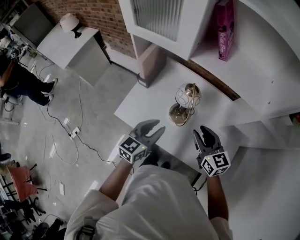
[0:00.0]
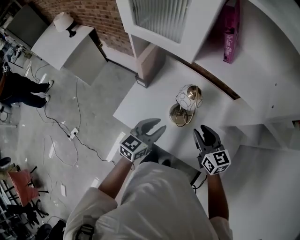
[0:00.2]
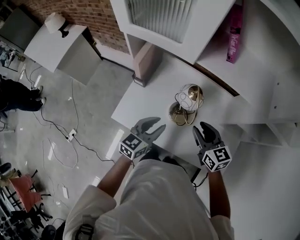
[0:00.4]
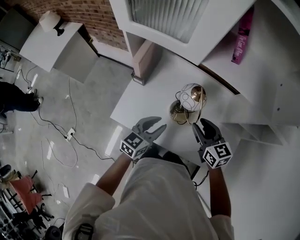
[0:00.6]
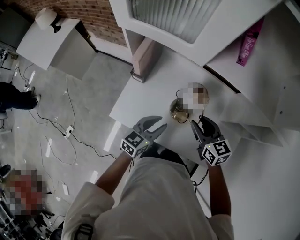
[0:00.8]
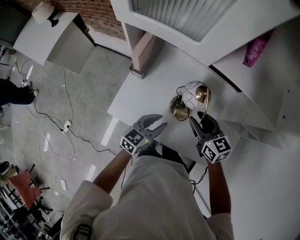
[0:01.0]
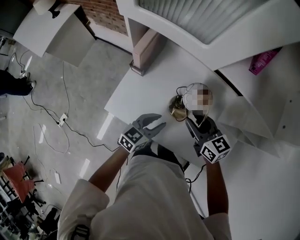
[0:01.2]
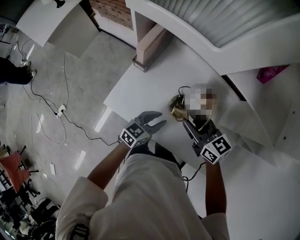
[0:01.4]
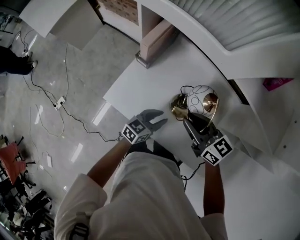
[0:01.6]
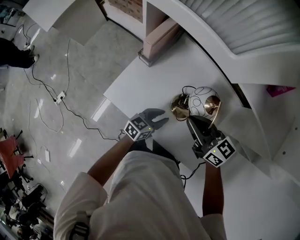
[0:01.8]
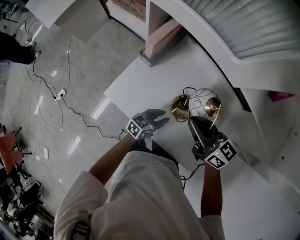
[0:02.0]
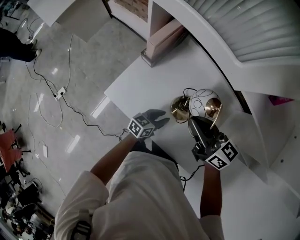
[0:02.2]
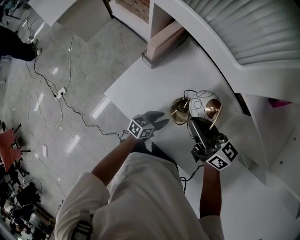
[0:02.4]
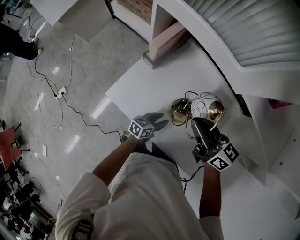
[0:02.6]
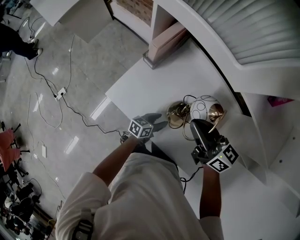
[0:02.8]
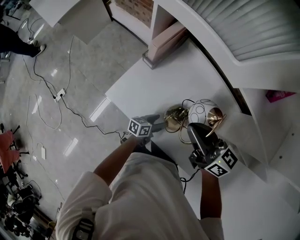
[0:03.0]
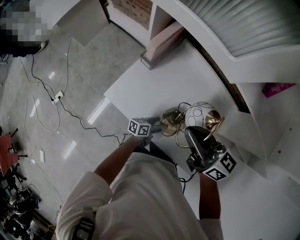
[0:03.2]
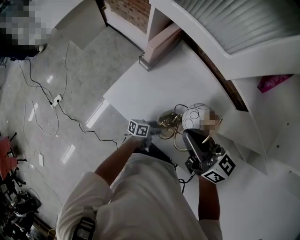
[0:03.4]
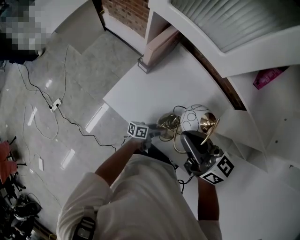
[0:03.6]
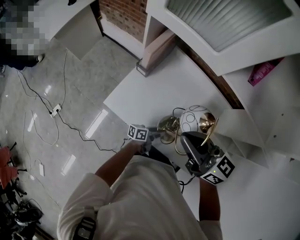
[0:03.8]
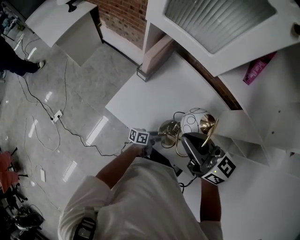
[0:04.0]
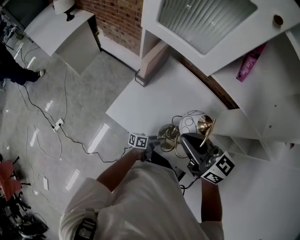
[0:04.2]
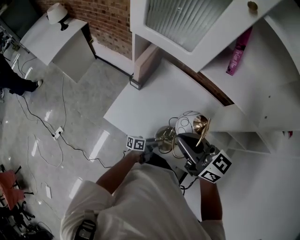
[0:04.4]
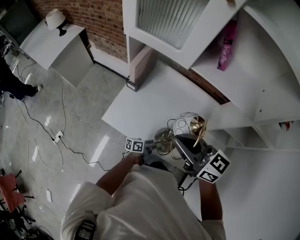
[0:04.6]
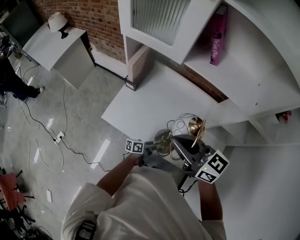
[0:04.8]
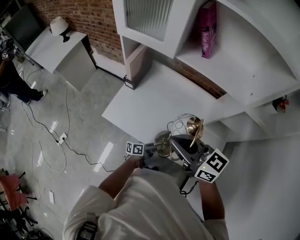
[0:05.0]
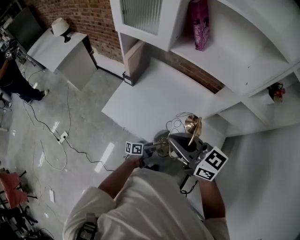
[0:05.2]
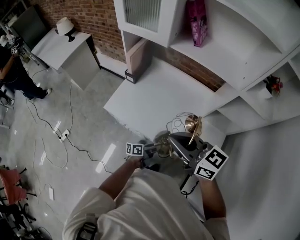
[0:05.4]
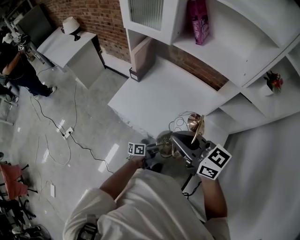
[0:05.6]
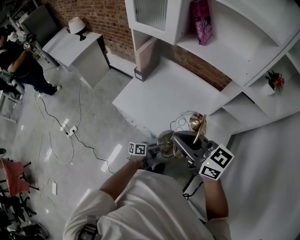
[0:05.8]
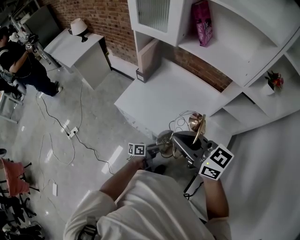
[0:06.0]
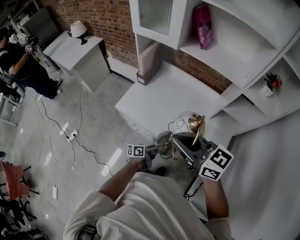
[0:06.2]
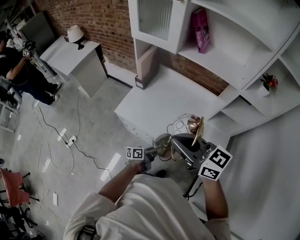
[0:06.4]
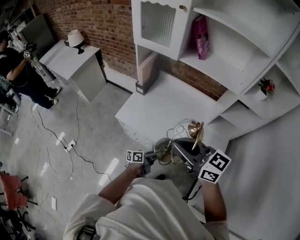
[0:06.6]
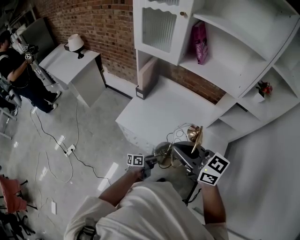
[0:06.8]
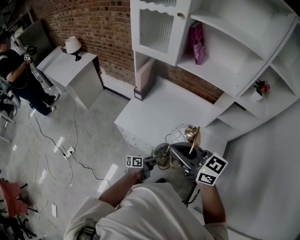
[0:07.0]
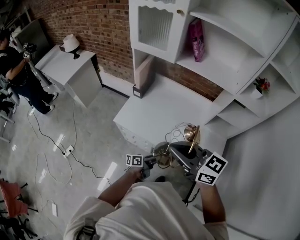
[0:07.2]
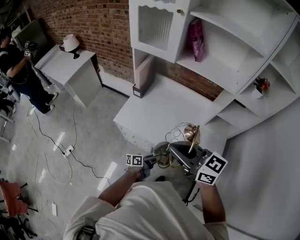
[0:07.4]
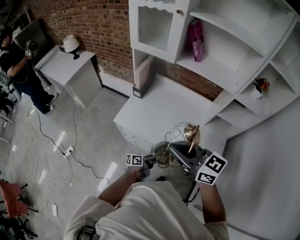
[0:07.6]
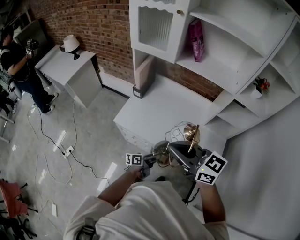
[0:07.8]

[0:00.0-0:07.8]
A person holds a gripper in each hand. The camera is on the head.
0:00.0 to 0:01.6: The left gripper shifts roughly 20 cm downward, and swivels about 20 degrees; the right gripper goes some 15 cm to the left, forward and downward, and turns by about 30 degrees.
0:01.6 to 0:03.2: The right gripper goes some 10 cm upward, and closes up; the left gripper moves downward, roughly 10 cm, rotates roughly 40 degrees, and opens its fingers.
0:03.2 to 0:04.6: Both grippers travel together backward and upward, some 10 cm. The left gripper closes up.
0:04.6 to 0:06.2: Both grippers move backward, approximately 20 cm.
0:06.2 to 0:07.8: The right gripper ends up roughly 5 cm from where it was.

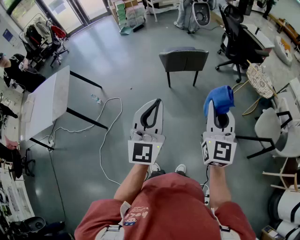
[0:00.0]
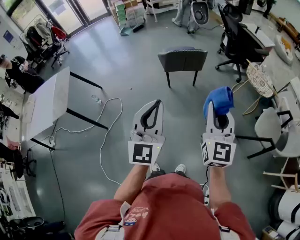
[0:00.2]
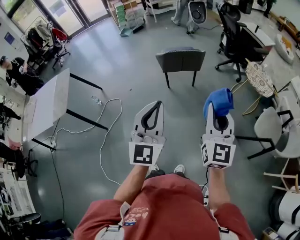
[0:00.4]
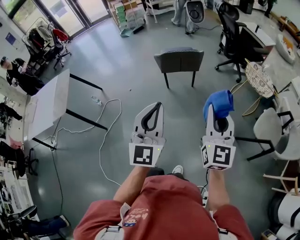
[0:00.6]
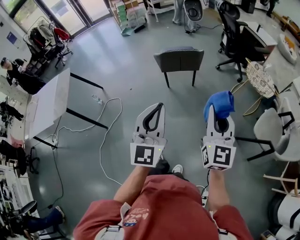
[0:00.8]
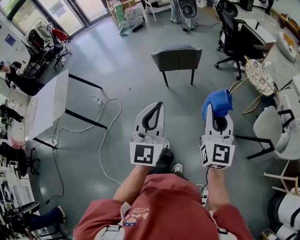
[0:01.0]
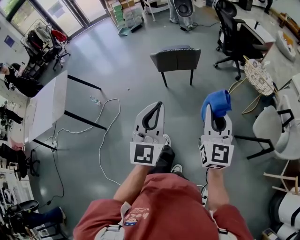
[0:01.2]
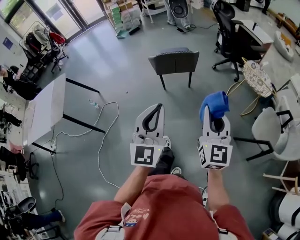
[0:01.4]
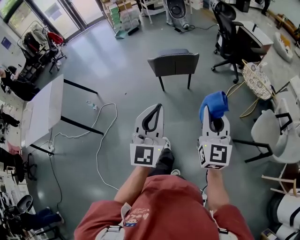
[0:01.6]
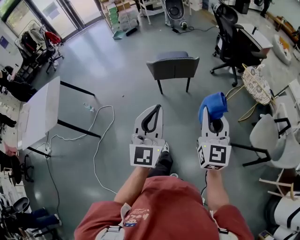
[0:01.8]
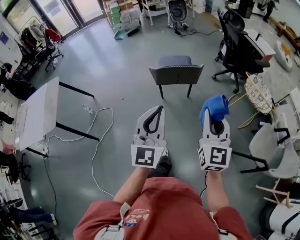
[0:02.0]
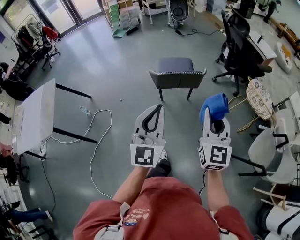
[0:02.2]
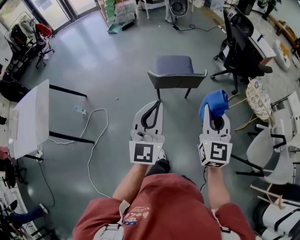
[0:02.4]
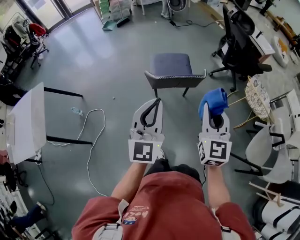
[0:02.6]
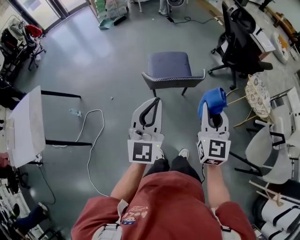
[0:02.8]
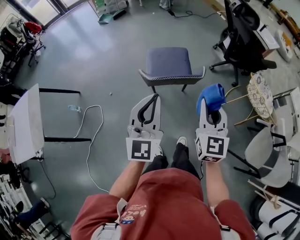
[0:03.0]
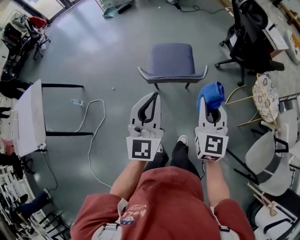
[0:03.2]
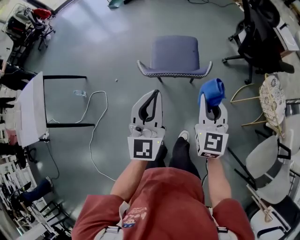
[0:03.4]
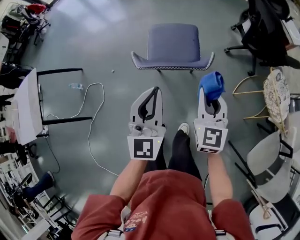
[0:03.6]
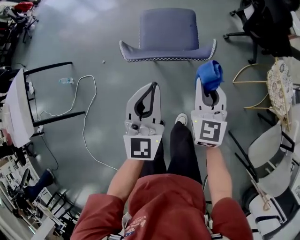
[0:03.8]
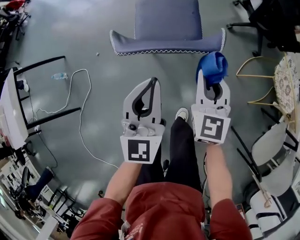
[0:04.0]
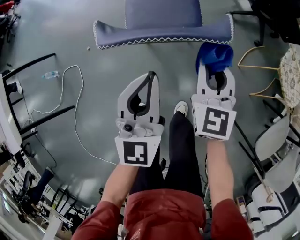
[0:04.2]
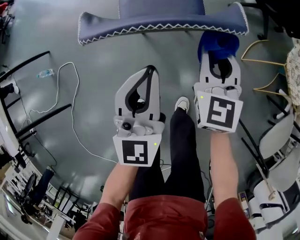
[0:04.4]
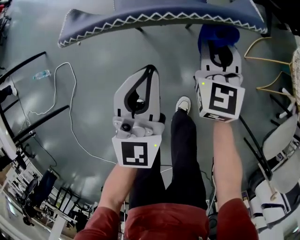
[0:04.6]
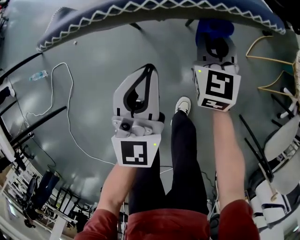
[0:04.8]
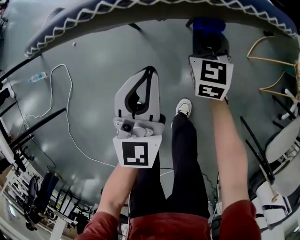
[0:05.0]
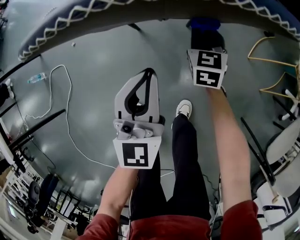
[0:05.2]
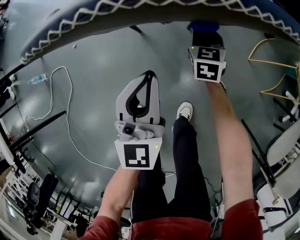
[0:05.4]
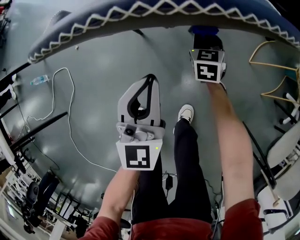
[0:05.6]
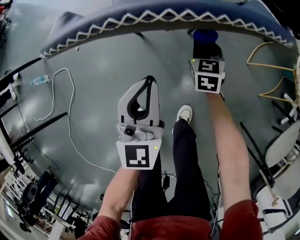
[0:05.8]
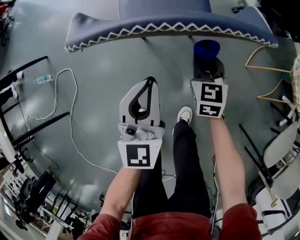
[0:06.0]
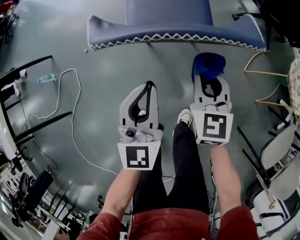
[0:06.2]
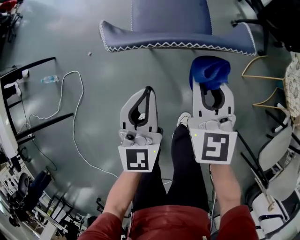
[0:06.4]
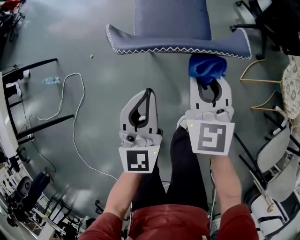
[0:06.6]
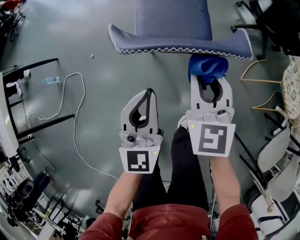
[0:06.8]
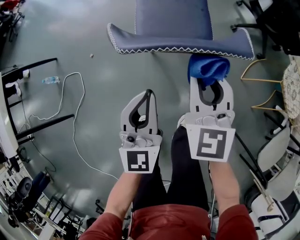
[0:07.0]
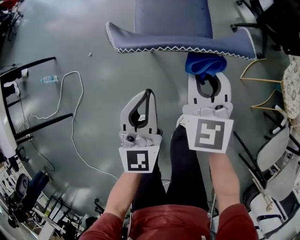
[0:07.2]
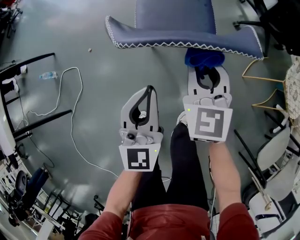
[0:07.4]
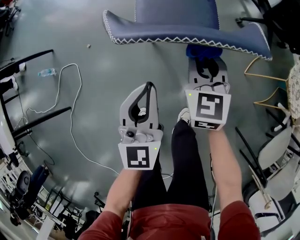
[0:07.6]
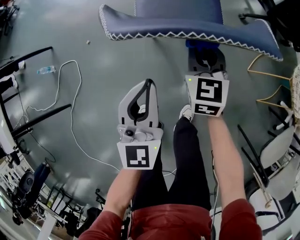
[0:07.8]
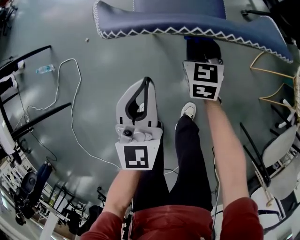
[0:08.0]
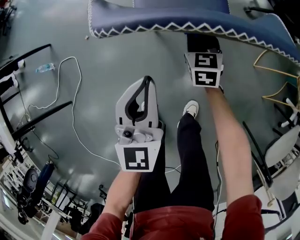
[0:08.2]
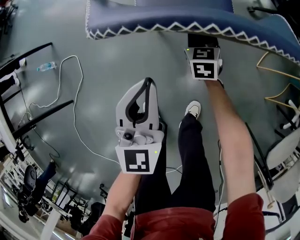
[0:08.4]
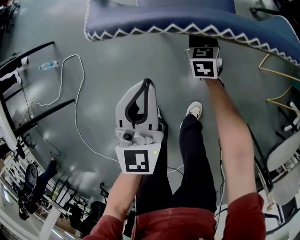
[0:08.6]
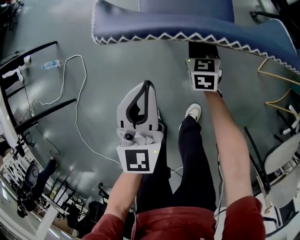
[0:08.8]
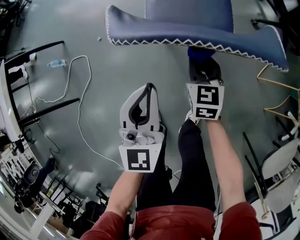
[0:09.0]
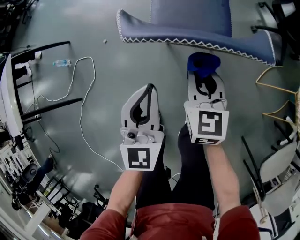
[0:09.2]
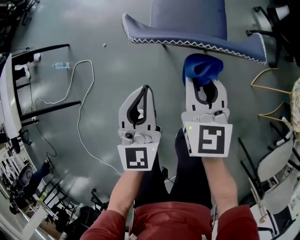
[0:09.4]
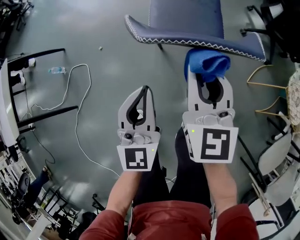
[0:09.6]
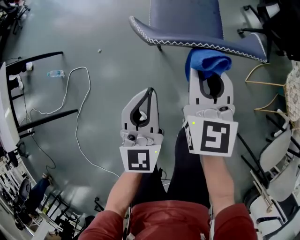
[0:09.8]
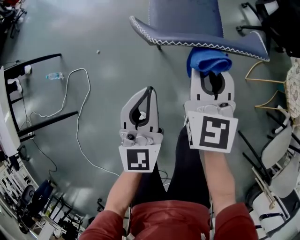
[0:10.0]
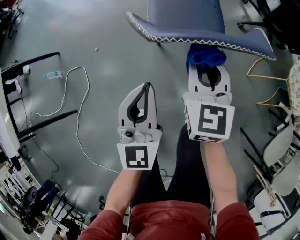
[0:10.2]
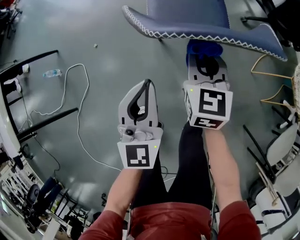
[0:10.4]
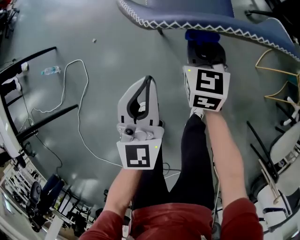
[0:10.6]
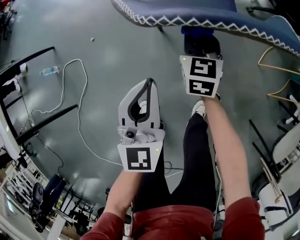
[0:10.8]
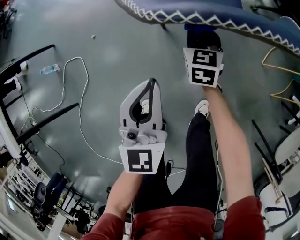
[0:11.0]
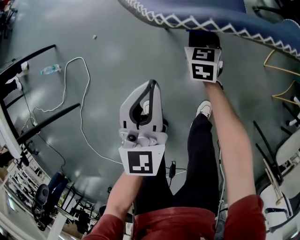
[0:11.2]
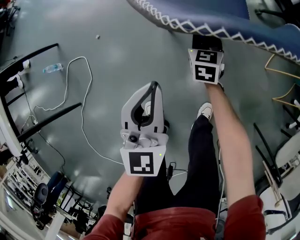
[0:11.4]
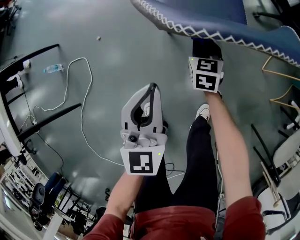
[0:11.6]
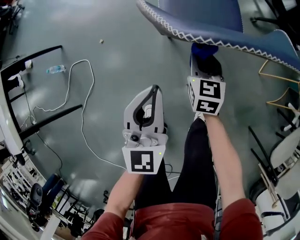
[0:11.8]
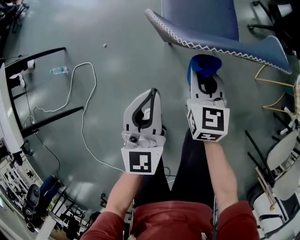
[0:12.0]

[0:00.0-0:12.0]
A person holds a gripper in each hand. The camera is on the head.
0:00.0 to 0:01.6: The two grippers go roughly 10 cm to the right and forward.
0:01.6 to 0:03.0: The two grippers go about 35 cm forward.
0:03.0 to 0:04.4: The left gripper moves downward, about 30 cm, while the right gripper heads downward and forward, covering about 35 cm.
0:04.4 to 0:06.0: The left gripper is displaced downward by roughly 10 cm. The right gripper travels downward by approximately 15 cm.
0:06.0 to 0:07.6: The right gripper shifts roughly 15 cm upward and to the left. The left gripper travels to the left by some 5 cm.
0:07.6 to 0:09.0: The right gripper moves downward, approximately 10 cm.
0:09.0 to 0:10.4: The right gripper moves upward, approximately 10 cm.
0:10.4 to 0:12.0: The grippers both shift to the left by roughly 5 cm. The left gripper goes downward and returns, roughly 5 cm each way. Meanwhile the right gripper goes downward and returns, roughly 20 cm each way.

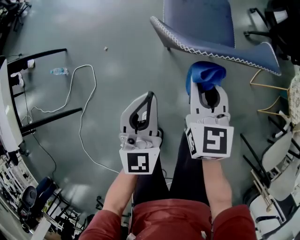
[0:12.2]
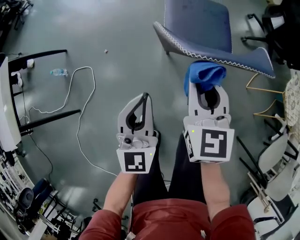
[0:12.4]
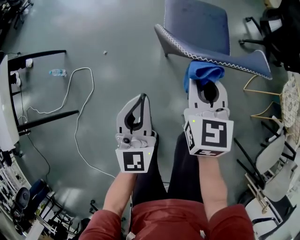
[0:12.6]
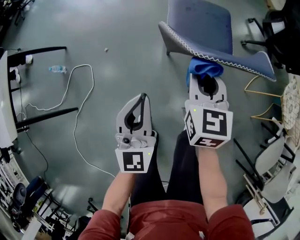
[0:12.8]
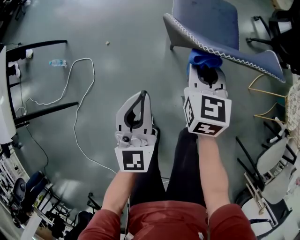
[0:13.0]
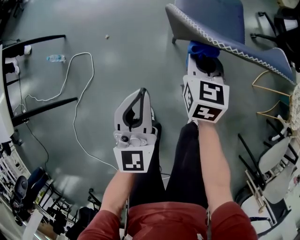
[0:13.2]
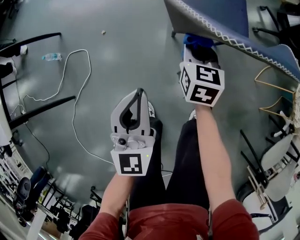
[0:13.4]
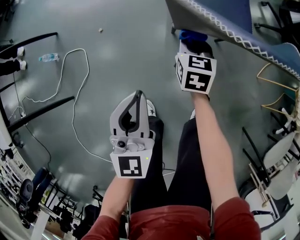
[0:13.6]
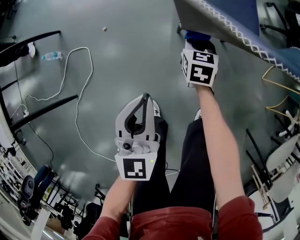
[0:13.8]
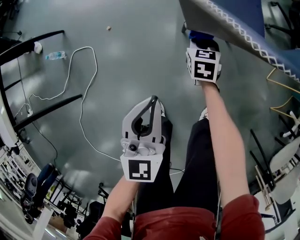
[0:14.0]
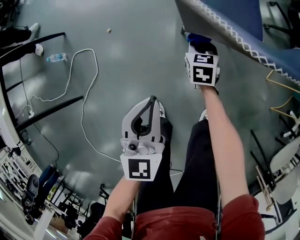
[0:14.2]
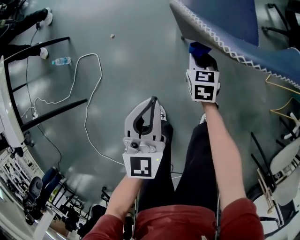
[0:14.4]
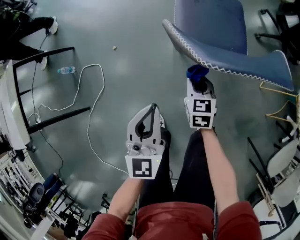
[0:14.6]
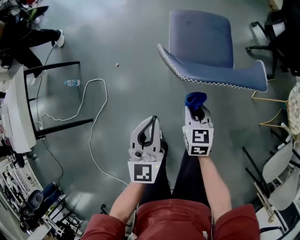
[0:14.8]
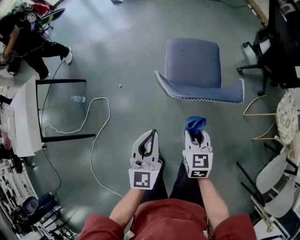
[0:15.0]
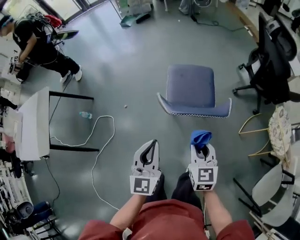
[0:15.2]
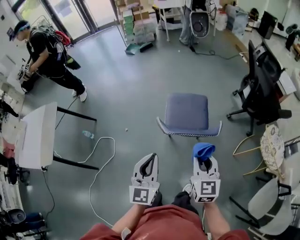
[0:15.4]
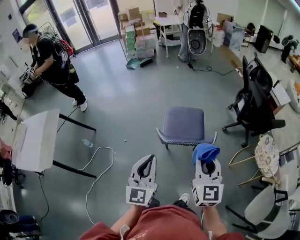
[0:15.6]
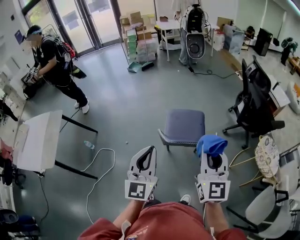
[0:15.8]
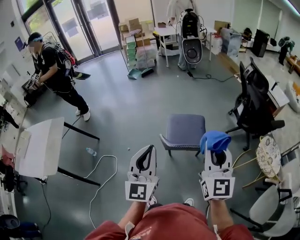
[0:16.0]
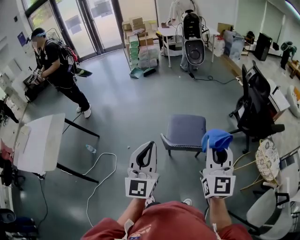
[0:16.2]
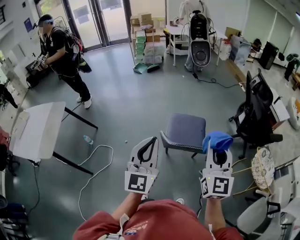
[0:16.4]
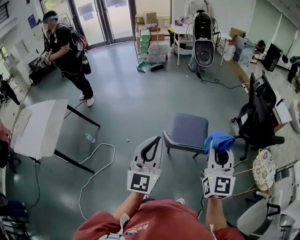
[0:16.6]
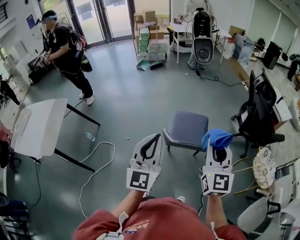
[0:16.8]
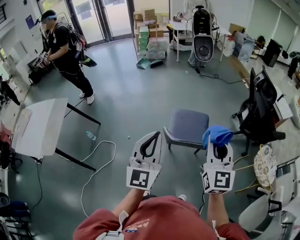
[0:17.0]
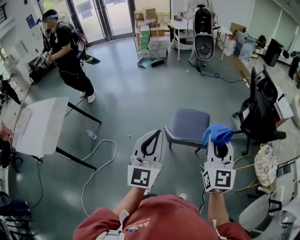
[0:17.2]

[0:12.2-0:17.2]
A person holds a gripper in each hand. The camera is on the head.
0:12.2 to 0:13.8: The right gripper shifts about 30 cm downward, and rotates about 20 degrees, while the left gripper travels downward and to the left by approximately 10 cm.
0:13.8 to 0:15.6: The left gripper heads upward, covering some 40 cm. The right gripper heads upward, covering roughly 60 cm, and points its fingers about 40 degrees further upward.
0:15.6 to 0:17.2: Both grippers move upward, some 10 cm.
